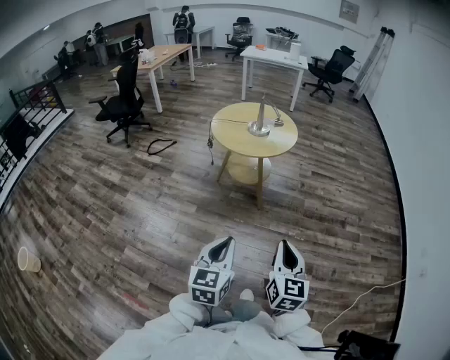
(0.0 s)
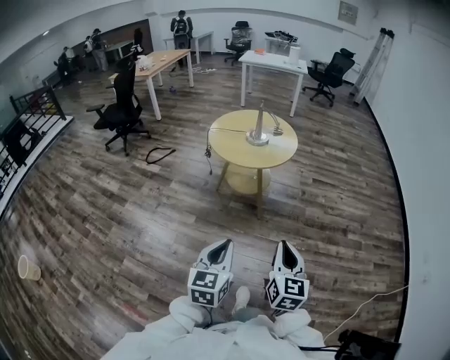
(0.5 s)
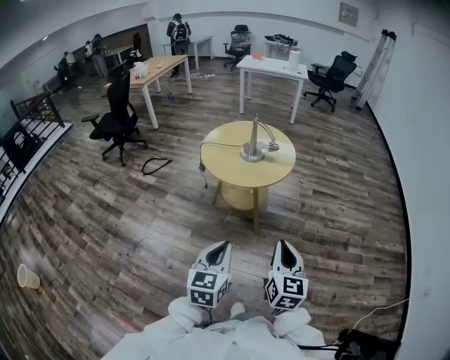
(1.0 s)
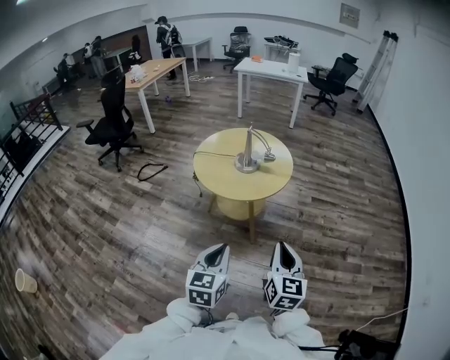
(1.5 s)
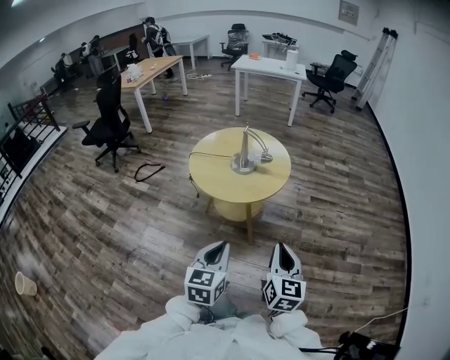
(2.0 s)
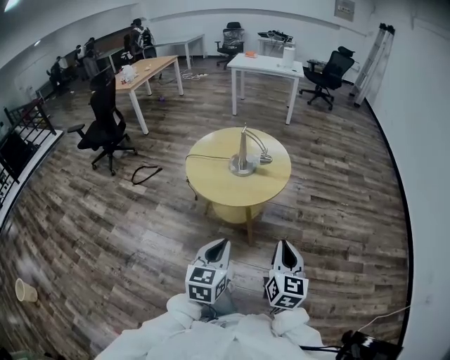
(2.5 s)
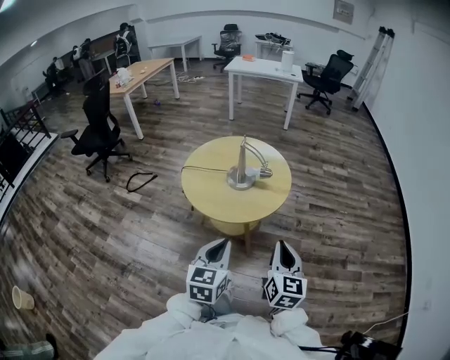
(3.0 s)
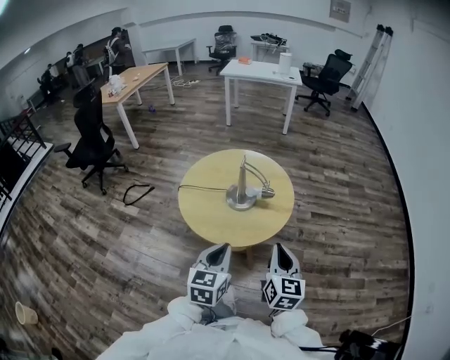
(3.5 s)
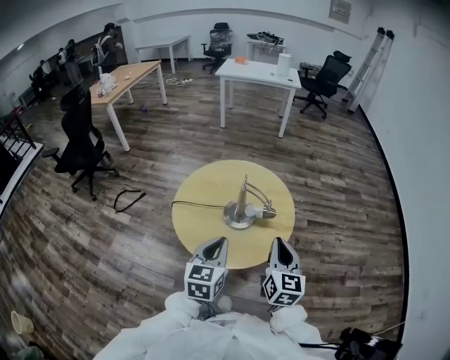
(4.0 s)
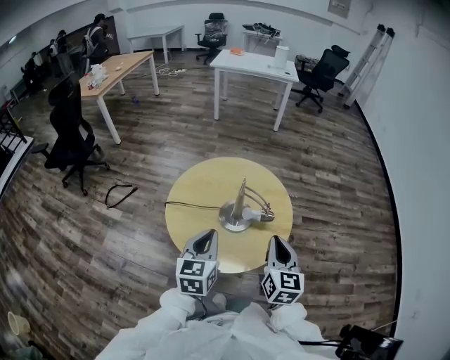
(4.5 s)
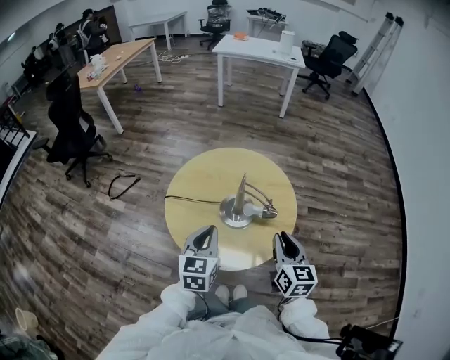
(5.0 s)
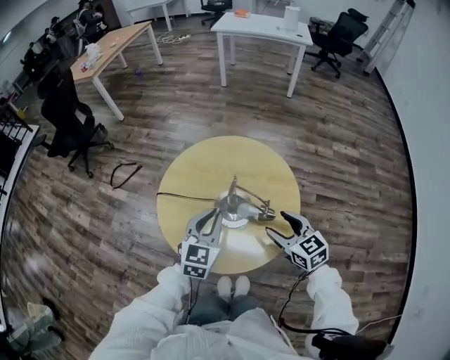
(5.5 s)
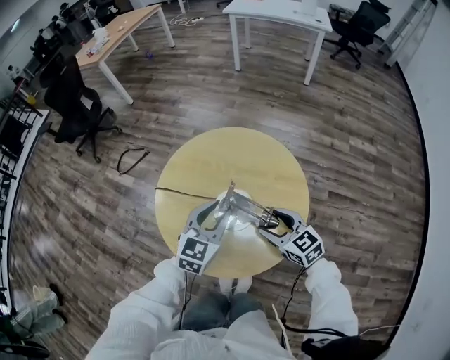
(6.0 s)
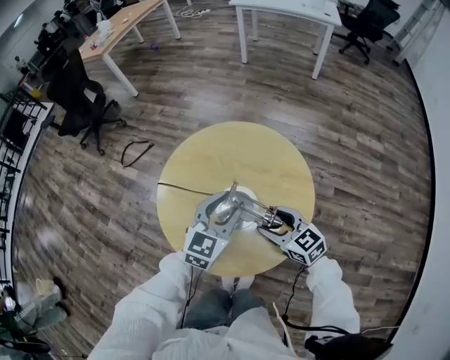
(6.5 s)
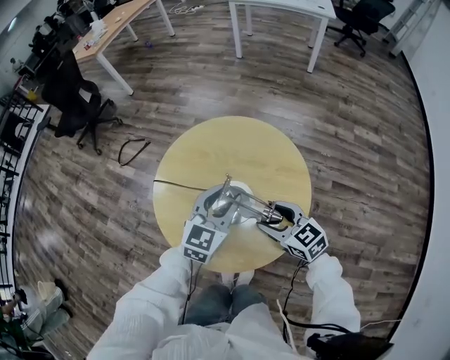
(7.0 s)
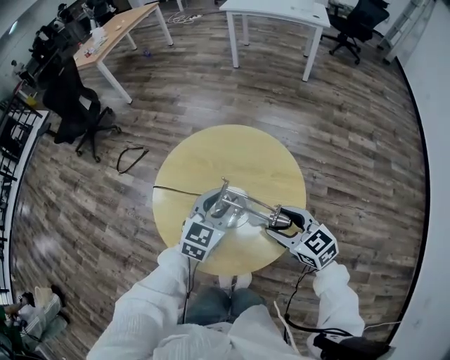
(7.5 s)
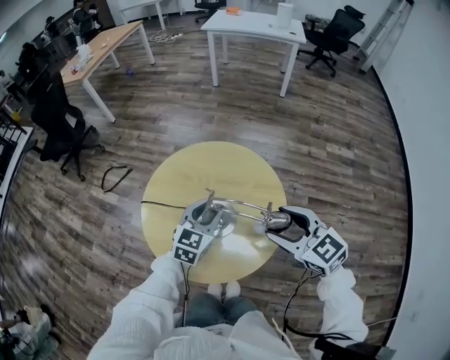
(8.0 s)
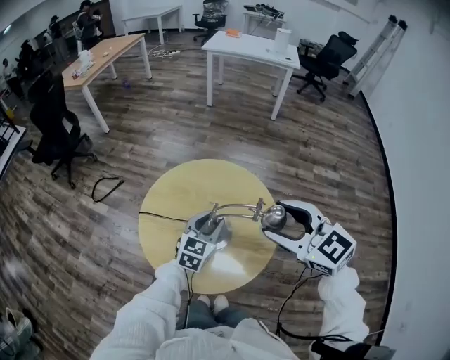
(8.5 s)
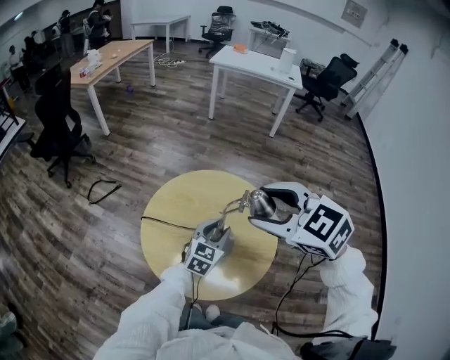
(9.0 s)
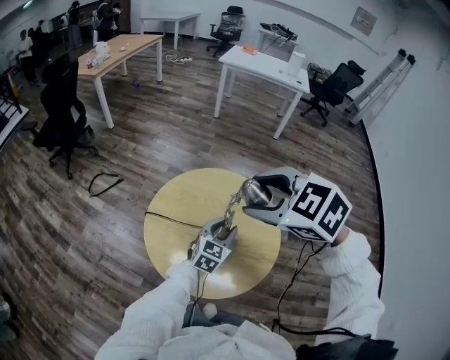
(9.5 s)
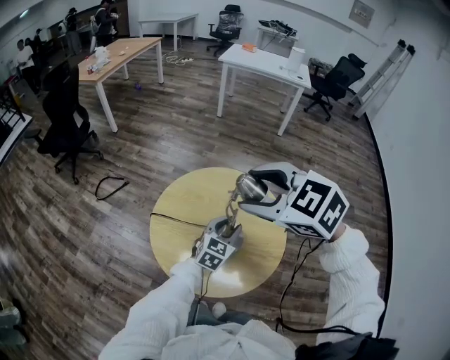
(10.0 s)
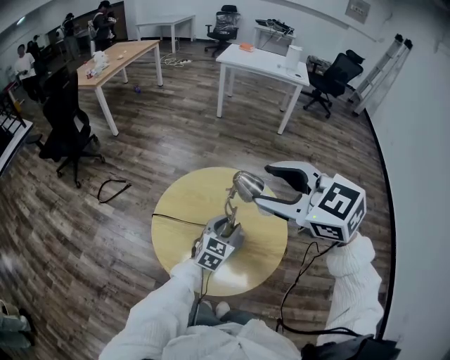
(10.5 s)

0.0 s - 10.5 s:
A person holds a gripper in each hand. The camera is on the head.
0.0 s - 2.0 s: Both grippers travel together forward, approximately 35 cm.
2.0 s - 4.0 s: The grippers both shift forward by about 35 cm.
4.0 s - 6.5 s: The right gripper changes place by about 30 cm, changes its angle by approximately 60 degrees, and opens its fingers. Meanwhile the left gripper changes place by some 30 cm, and opens its fingers.
6.5 s - 8.5 s: The right gripper is displaced upward by about 30 cm, and changes its angle by approximately 20 degrees.
8.5 s - 10.5 s: The right gripper moves upward, to the left and forward, about 15 cm.

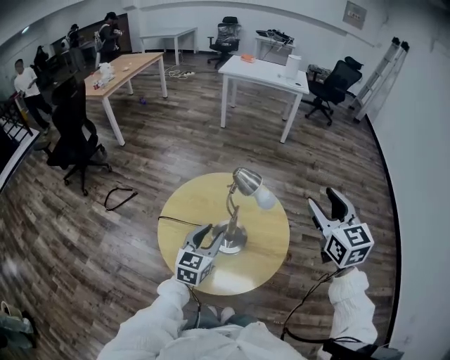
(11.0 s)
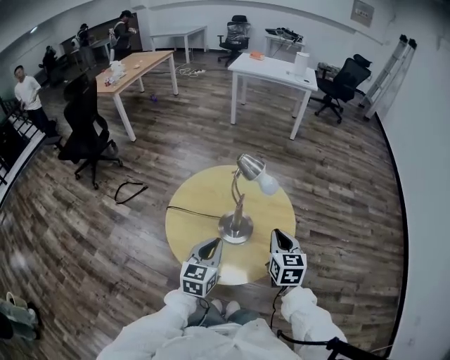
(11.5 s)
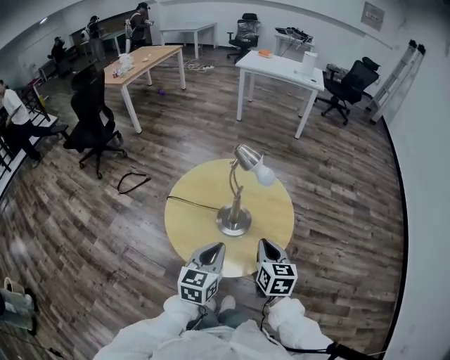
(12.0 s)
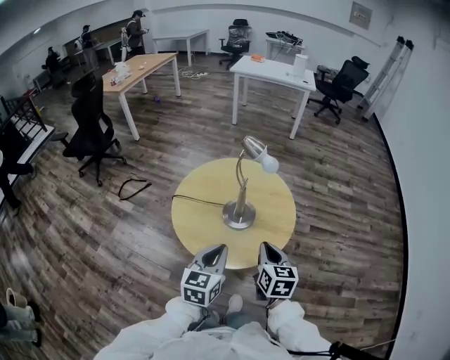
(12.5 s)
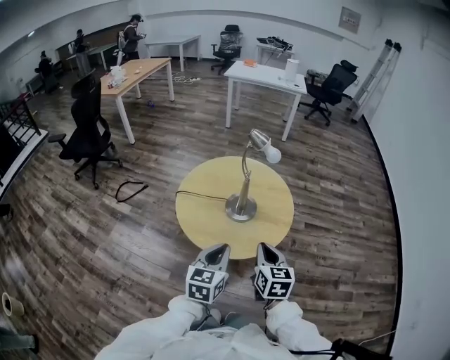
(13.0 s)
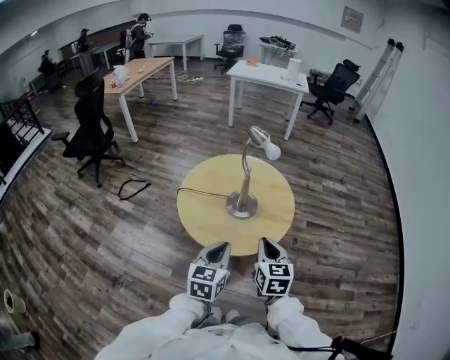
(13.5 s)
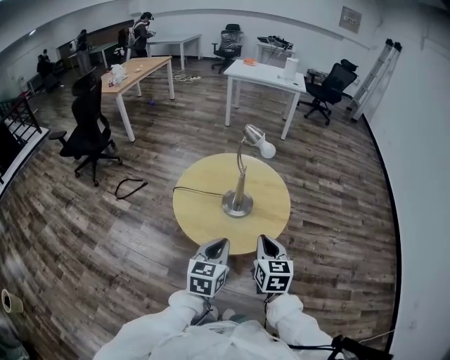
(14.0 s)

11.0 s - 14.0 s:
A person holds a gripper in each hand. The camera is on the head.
11.0 s - 12.5 s: The right gripper shifts some 30 cm downward, backward and to the left, changes its angle by about 30 degrees, and closes up. Meanwhile the left gripper travels backward by about 20 cm, and closes up.
12.5 s - 14.0 s: Both grippers move backward, approximately 5 cm.

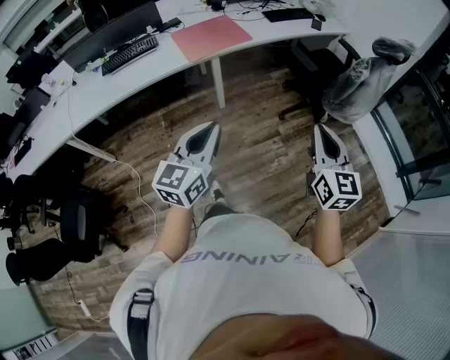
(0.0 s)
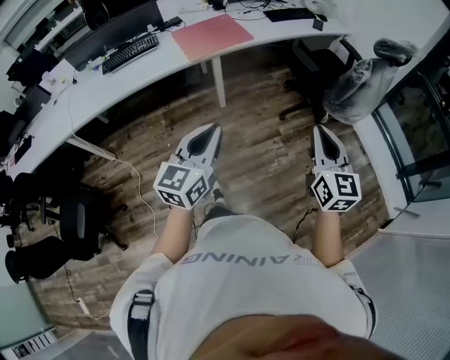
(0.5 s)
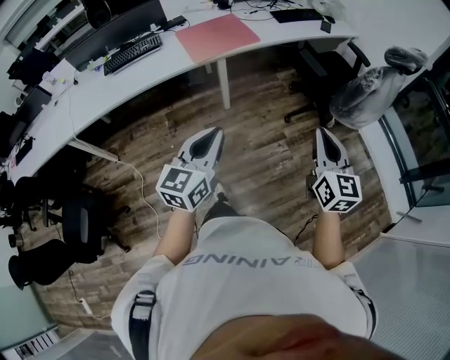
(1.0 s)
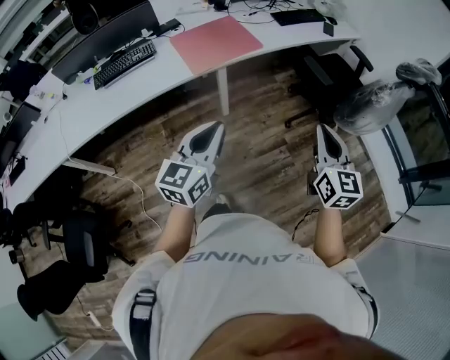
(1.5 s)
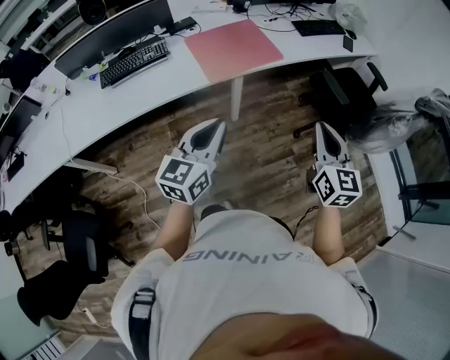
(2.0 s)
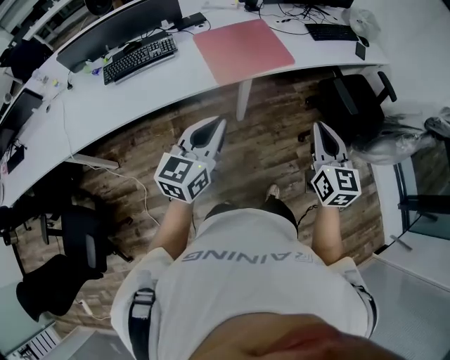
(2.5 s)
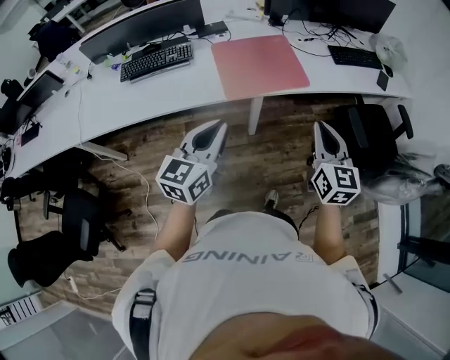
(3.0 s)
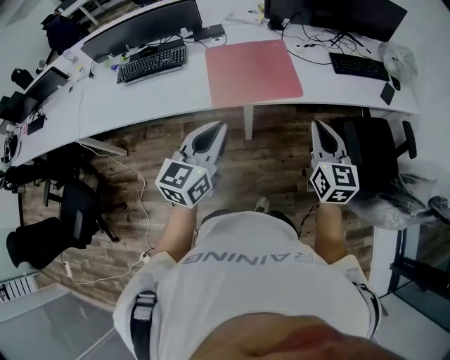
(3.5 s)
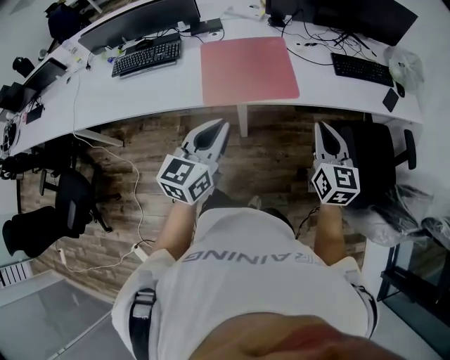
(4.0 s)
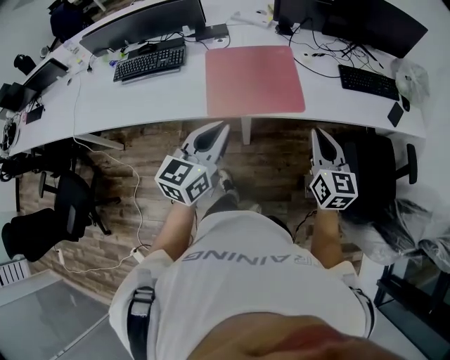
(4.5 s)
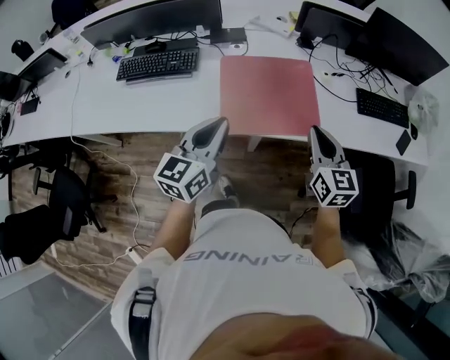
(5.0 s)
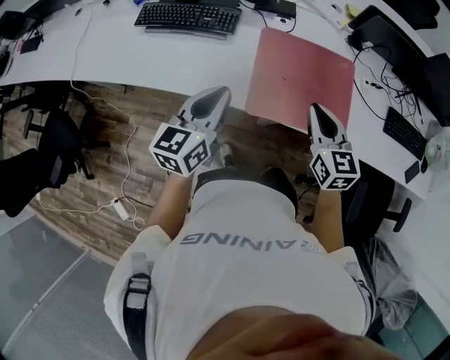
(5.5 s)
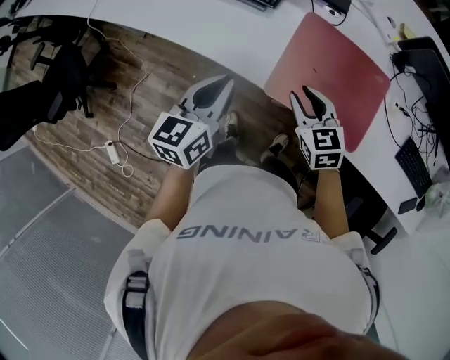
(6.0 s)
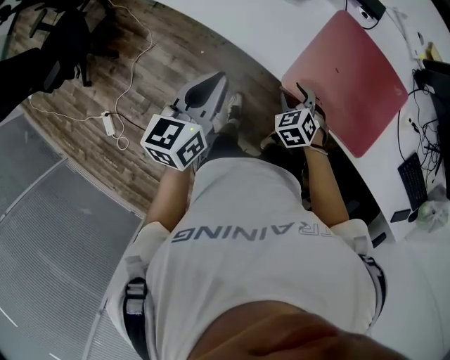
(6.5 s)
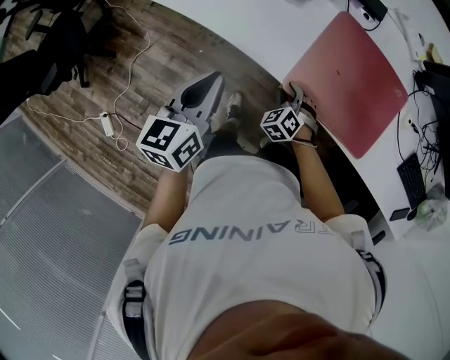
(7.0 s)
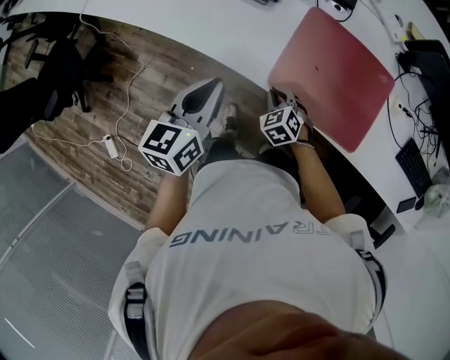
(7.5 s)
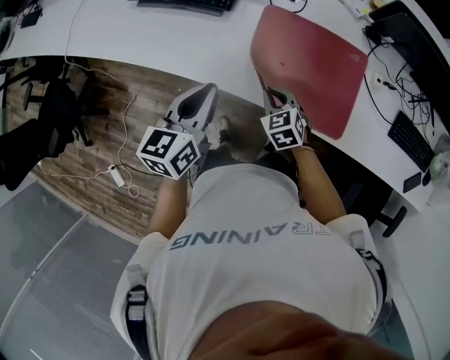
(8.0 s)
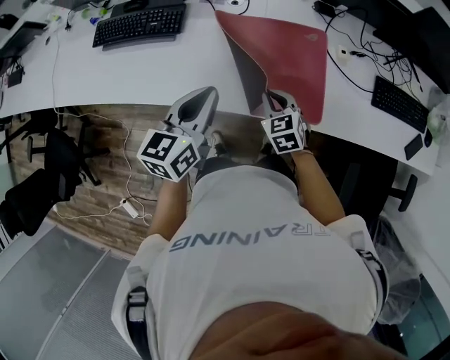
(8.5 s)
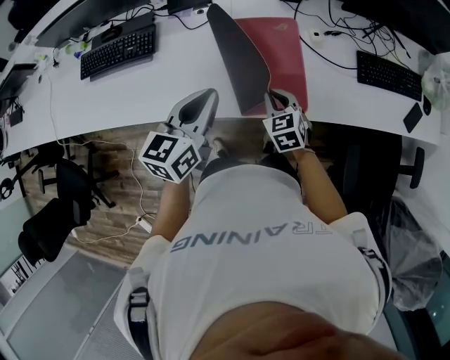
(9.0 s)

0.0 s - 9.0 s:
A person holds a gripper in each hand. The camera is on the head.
0.0 s - 2.0 s: The grippers both shift forward and to the left by about 30 cm.
2.0 s - 4.5 s: The right gripper travels forward by some 35 cm, and swivels some 30 degrees. The left gripper is displaced forward and to the right by about 30 cm, and turns by roughly 20 degrees.
4.5 s - 7.0 s: The left gripper shifts by some 30 cm, and rotates approximately 40 degrees; the right gripper shifts by roughly 50 cm, tips its fingers downward by approximately 50 degrees, and opens.
7.0 s - 9.0 s: The right gripper shifts by about 30 cm, rotates around the line of its fingers by approximately 50 degrees, clockwise from behind, and closes up. The left gripper changes place by some 35 cm, and swivels approximately 40 degrees.

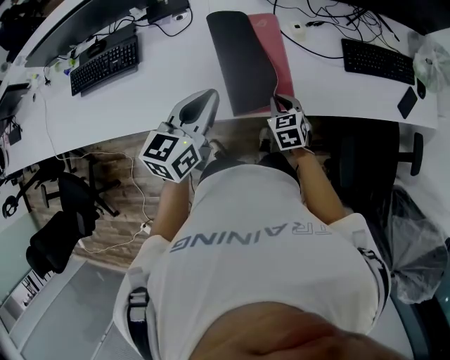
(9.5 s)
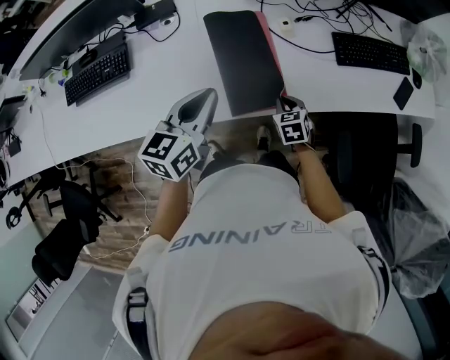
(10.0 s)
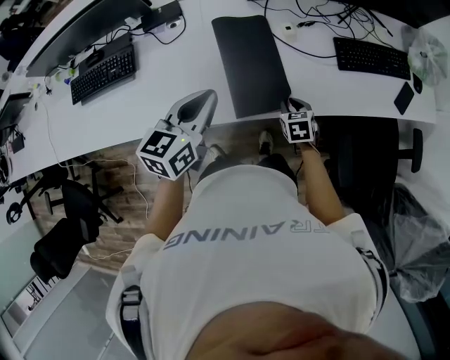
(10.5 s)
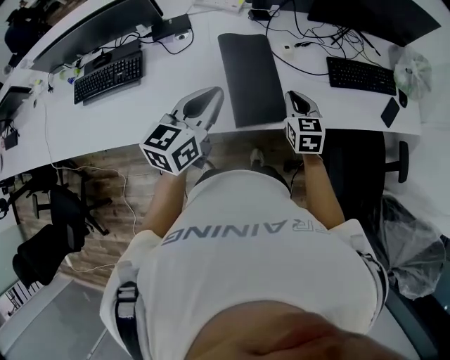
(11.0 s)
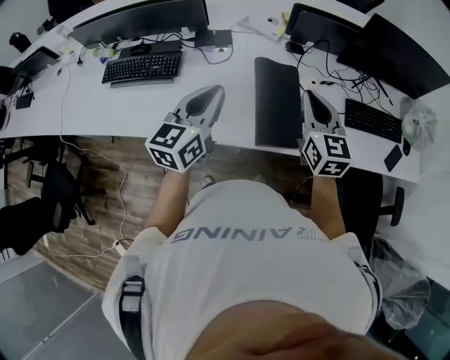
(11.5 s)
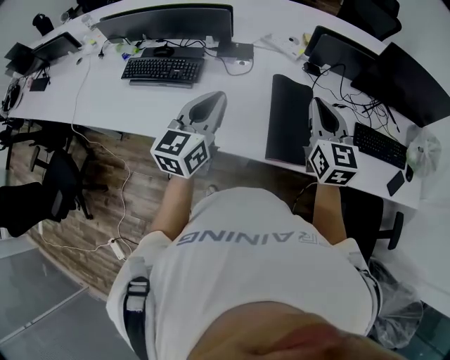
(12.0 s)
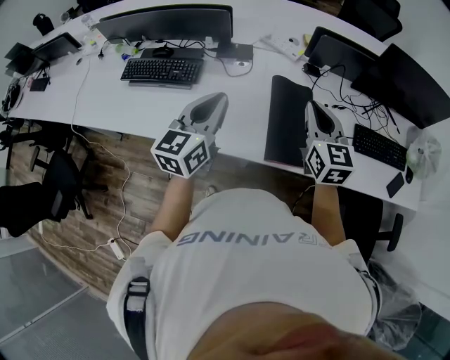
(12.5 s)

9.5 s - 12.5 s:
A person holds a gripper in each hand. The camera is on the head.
9.5 s - 11.0 s: The left gripper shifts roughly 5 cm upward. The right gripper goes roughly 10 cm upward.
11.0 s - 12.5 s: The left gripper shifts some 15 cm to the left and upward, and swivels approximately 20 degrees; the right gripper heads upward and to the left, covering roughly 25 cm, and changes its angle by roughly 30 degrees.
